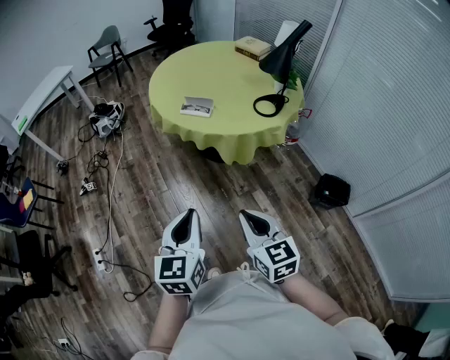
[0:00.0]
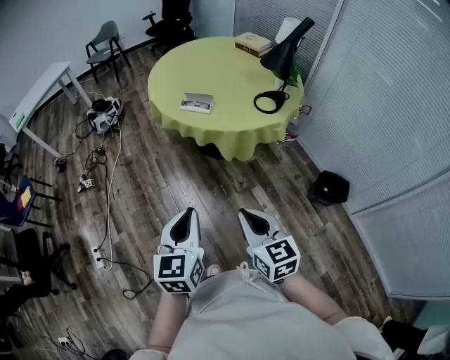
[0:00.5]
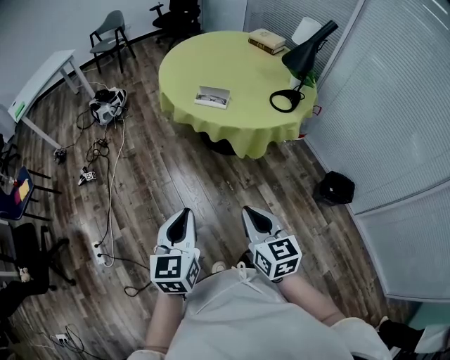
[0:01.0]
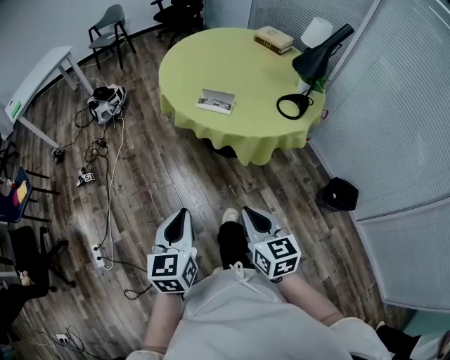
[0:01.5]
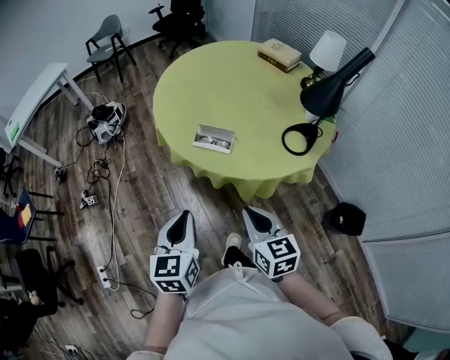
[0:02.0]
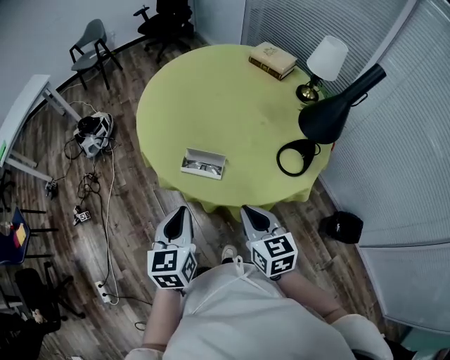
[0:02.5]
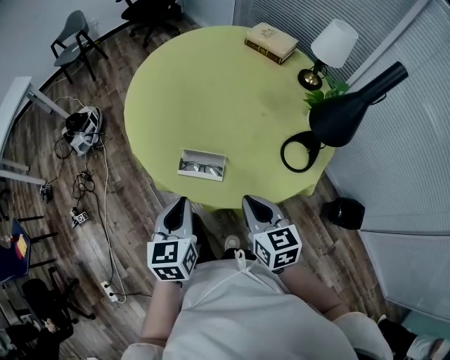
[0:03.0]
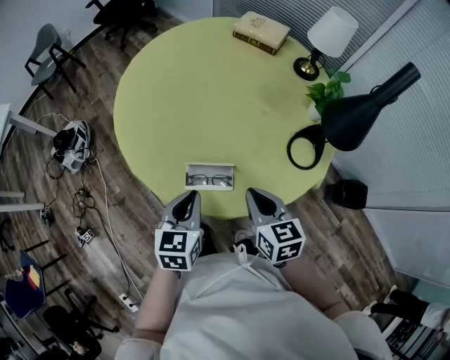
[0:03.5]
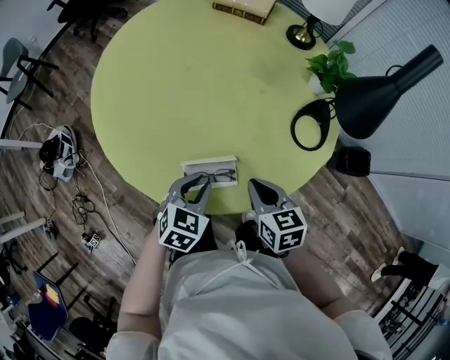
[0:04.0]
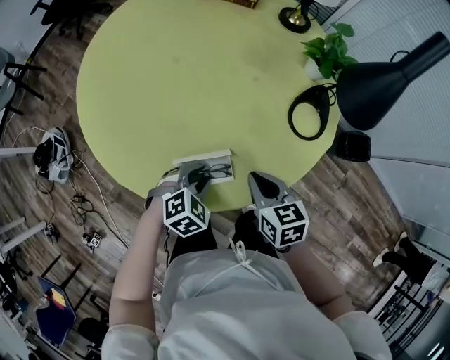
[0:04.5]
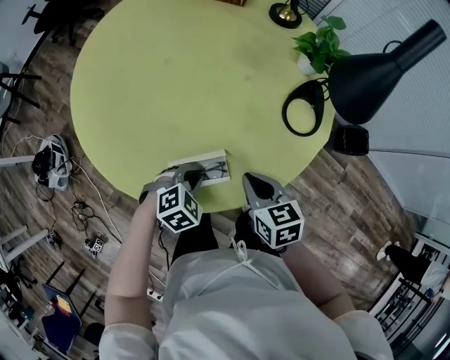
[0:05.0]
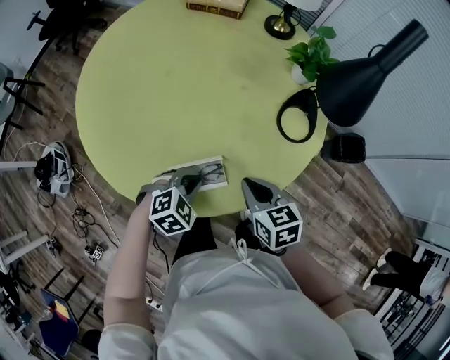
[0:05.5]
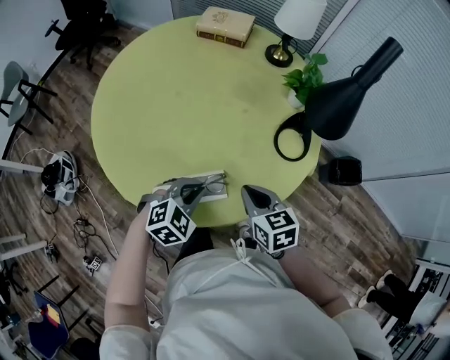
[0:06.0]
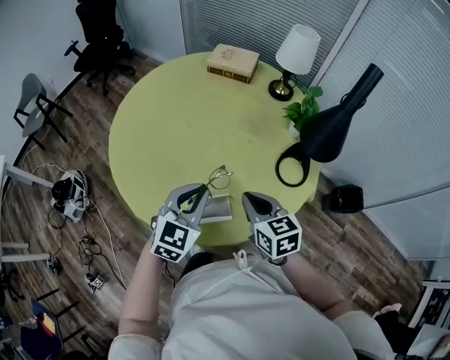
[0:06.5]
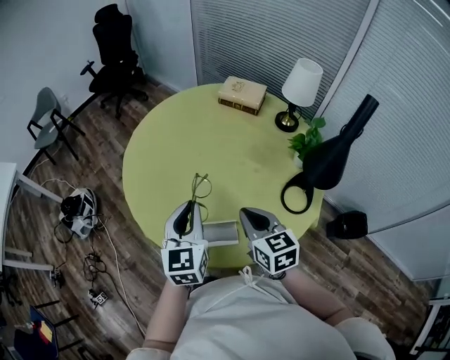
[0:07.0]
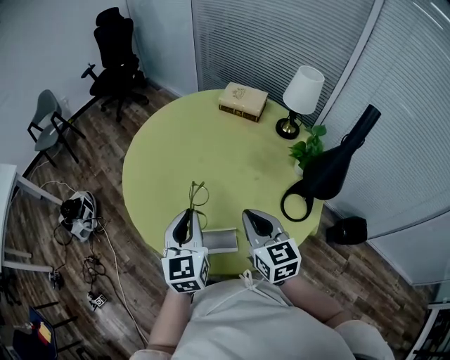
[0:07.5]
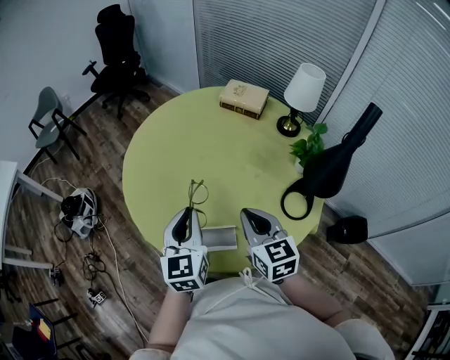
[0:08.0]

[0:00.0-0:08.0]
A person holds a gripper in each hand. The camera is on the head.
0:00.0 to 0:02.0: Both grippers move forward, some 30 cm.
0:02.0 to 0:04.0: The left gripper changes place by about 40 cm, and swivels some 60 degrees. The right gripper moves roughly 35 cm, and changes its angle by roughly 30 degrees.
0:04.0 to 0:06.0: The left gripper travels downward and back again, approximately 10 cm each way, and turns by roughly 30 degrees.
0:06.0 to 0:08.0: The grippers both shift upward by roughly 15 cm. The left gripper points its fingers approximately 40 degrees further upward. Meanwhile the right gripper changes its angle by approximately 20 degrees.

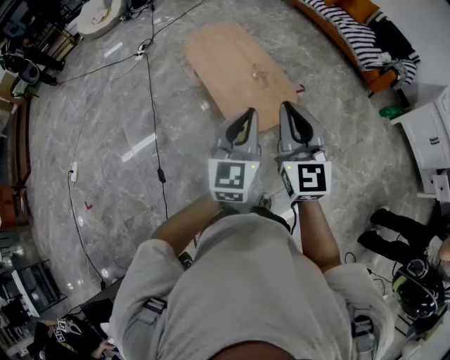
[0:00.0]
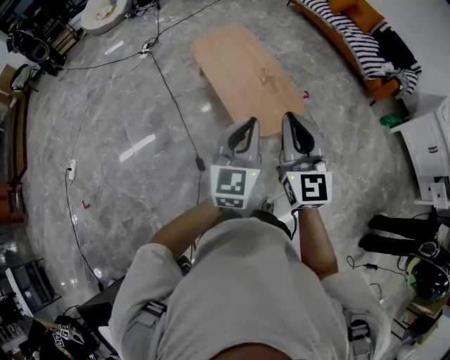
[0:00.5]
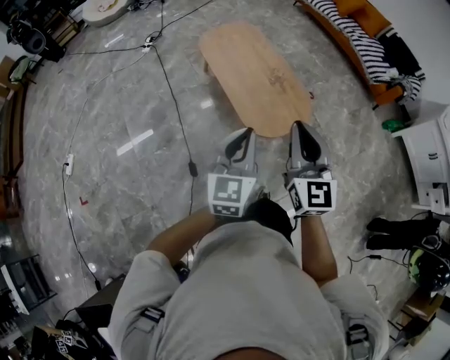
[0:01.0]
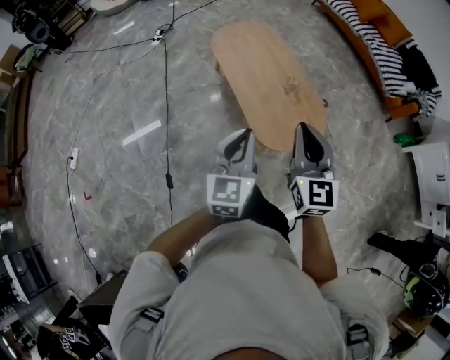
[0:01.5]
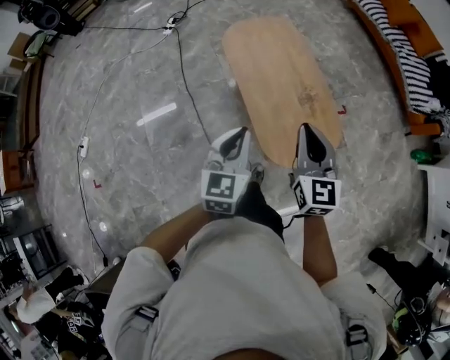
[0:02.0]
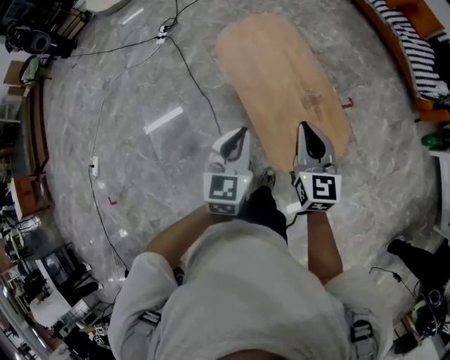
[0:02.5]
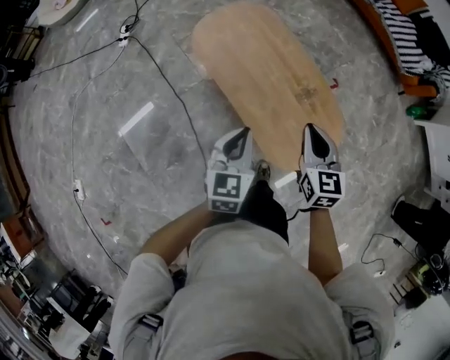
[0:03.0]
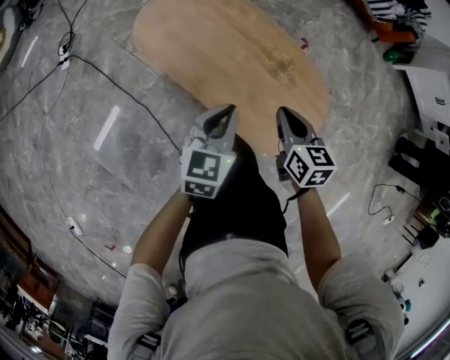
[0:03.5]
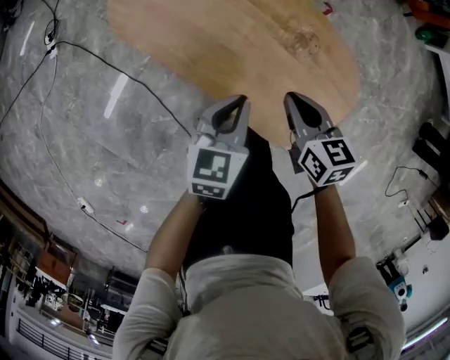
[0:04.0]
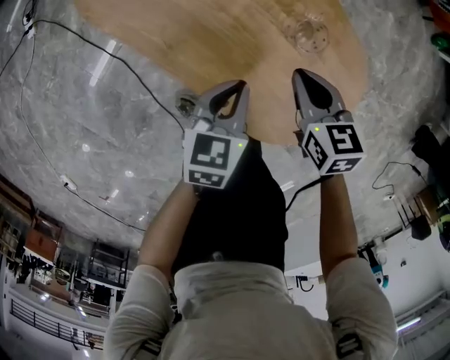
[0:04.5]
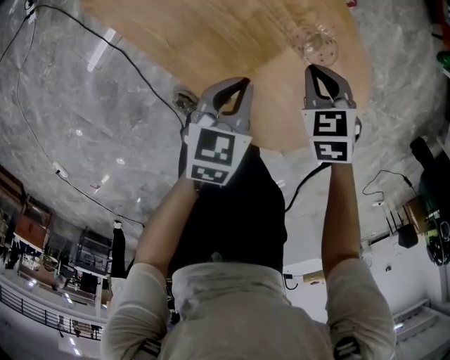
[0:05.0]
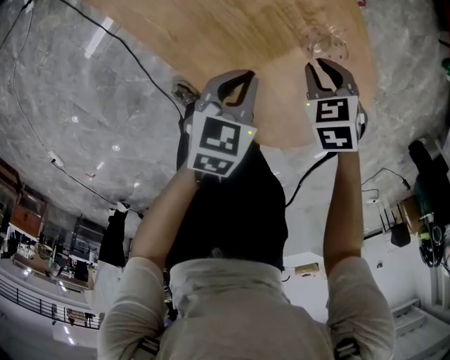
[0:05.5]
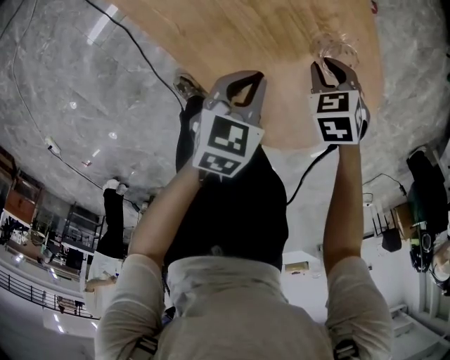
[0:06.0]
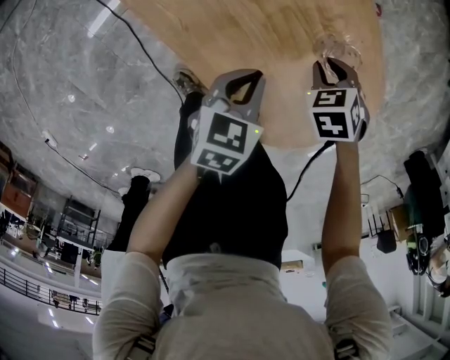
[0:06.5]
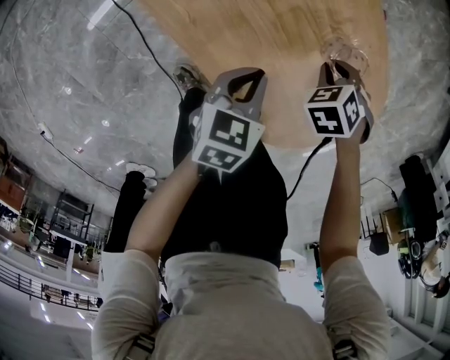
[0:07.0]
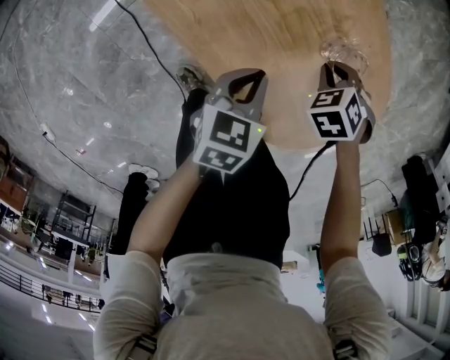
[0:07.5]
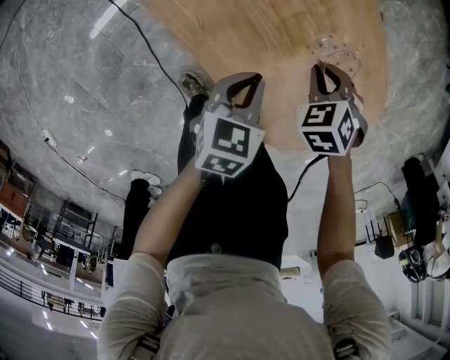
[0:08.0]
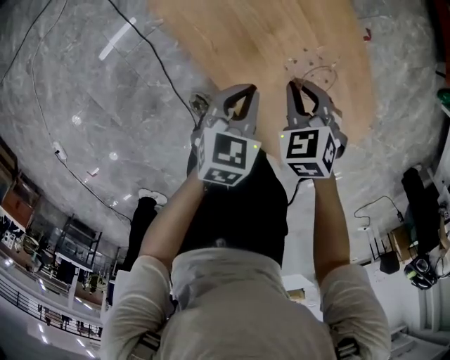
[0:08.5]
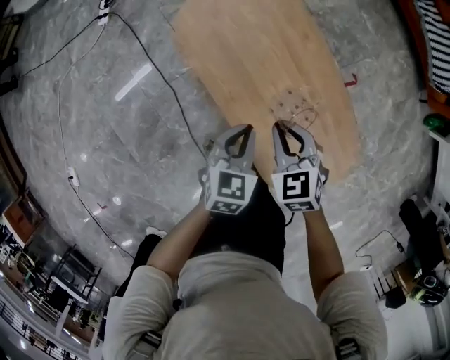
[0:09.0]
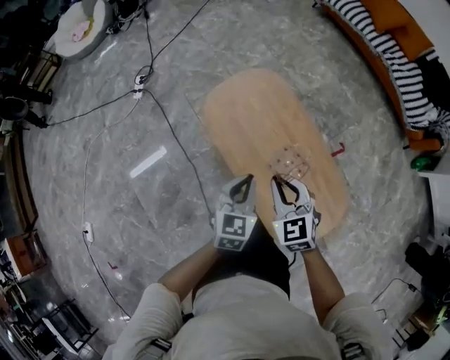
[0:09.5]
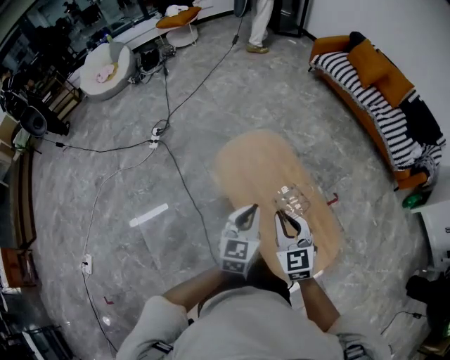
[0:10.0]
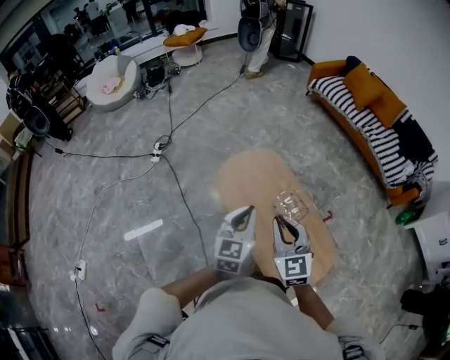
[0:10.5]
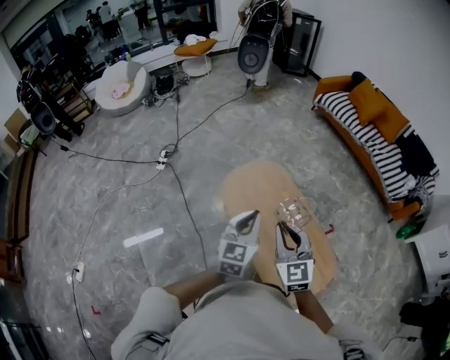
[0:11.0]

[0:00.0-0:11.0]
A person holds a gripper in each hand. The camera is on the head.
0:00.0 to 0:02.0: The right gripper moves forward, downward and to the left, about 30 cm. The left gripper shifts approximately 30 cm forward, to the left and downward, and rotates about 20 degrees.
0:02.0 to 0:03.5: The right gripper goes roughly 25 cm downward, and rotates approximately 40 degrees. Meanwhile the left gripper moves some 30 cm, and swivels roughly 40 degrees.
0:03.5 to 0:05.5: Both grippers travel together downward, some 25 cm. The right gripper tips its fingers downward by approximately 40 degrees. The left gripper turns by some 30 degrees.
0:07.5 to 0:09.0: Both grippers travel together upward, approximately 25 cm. The right gripper tilts its fingers roughly 40 degrees upward; the left gripper turns by approximately 20 degrees.
0:09.0 to 0:11.0: Both grippers move upward, approximately 30 cm. The left gripper tips its fingers upward by about 30 degrees; the right gripper points its fingers some 40 degrees further upward.

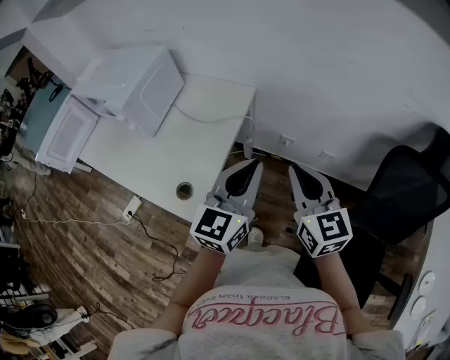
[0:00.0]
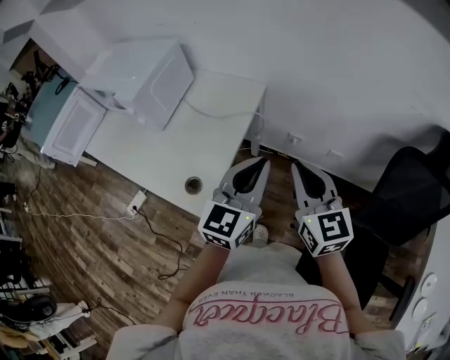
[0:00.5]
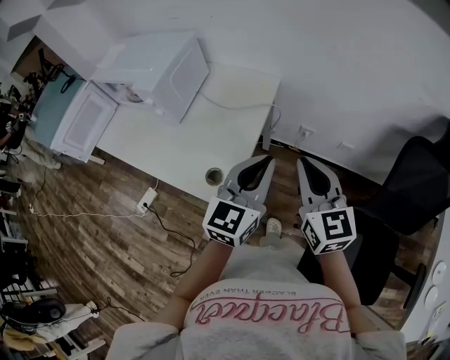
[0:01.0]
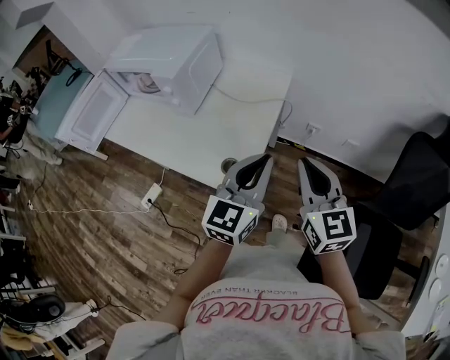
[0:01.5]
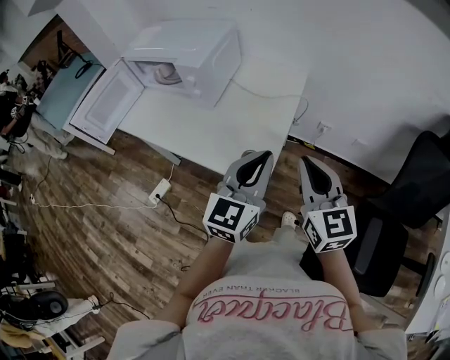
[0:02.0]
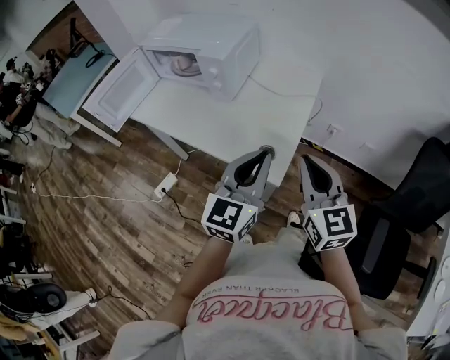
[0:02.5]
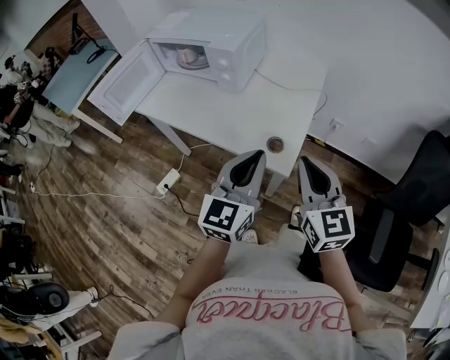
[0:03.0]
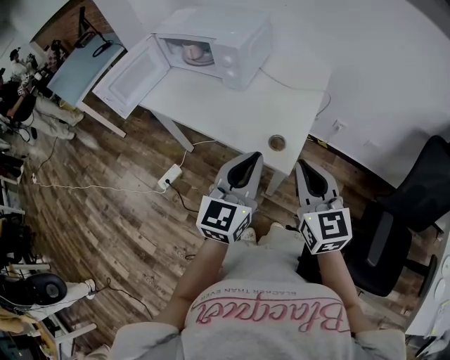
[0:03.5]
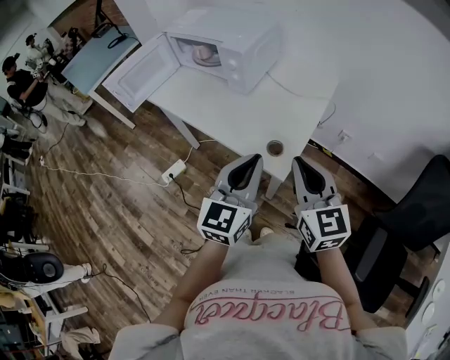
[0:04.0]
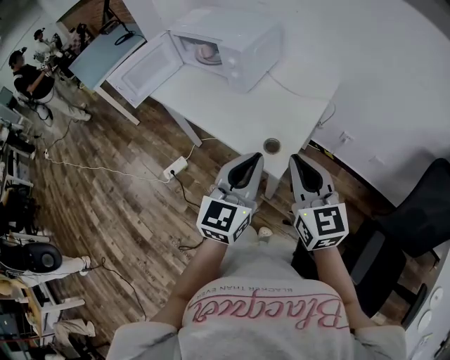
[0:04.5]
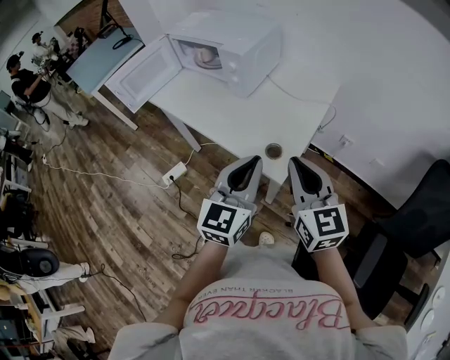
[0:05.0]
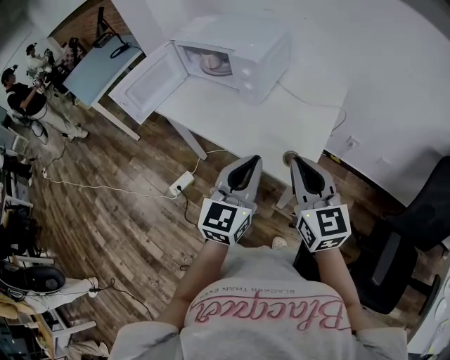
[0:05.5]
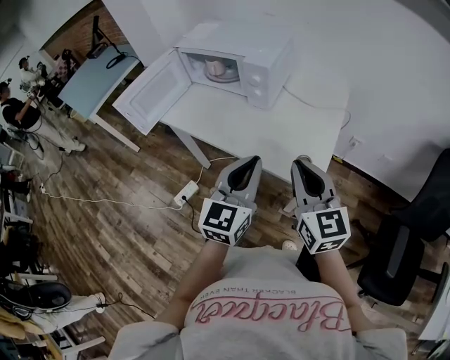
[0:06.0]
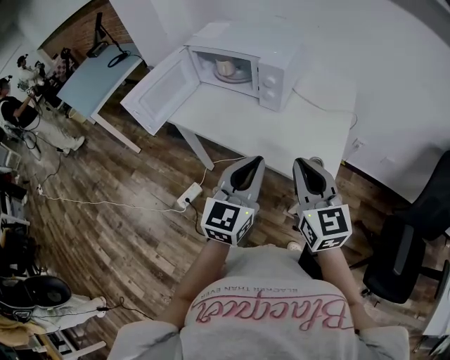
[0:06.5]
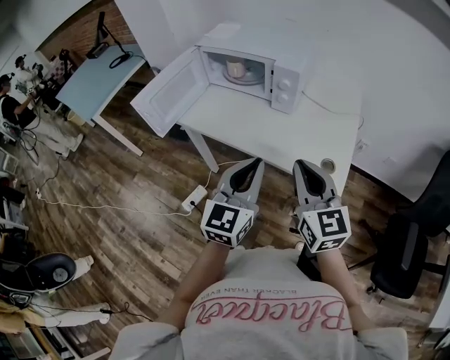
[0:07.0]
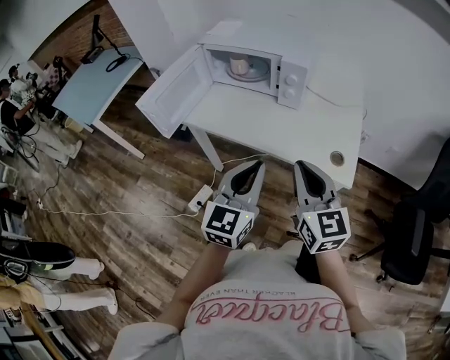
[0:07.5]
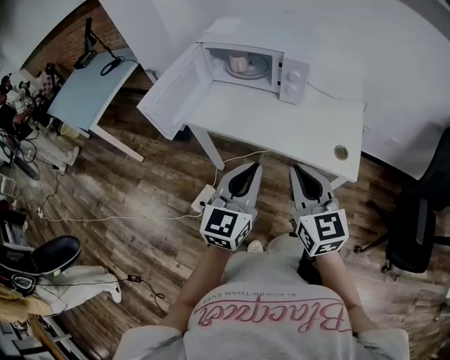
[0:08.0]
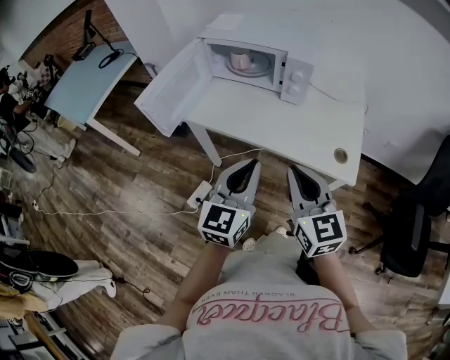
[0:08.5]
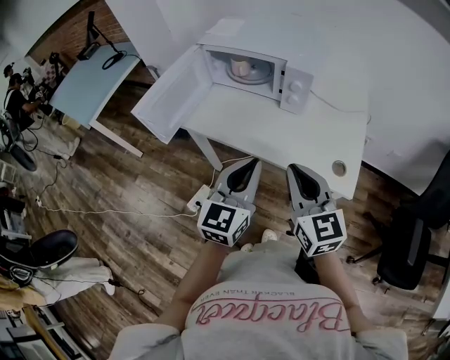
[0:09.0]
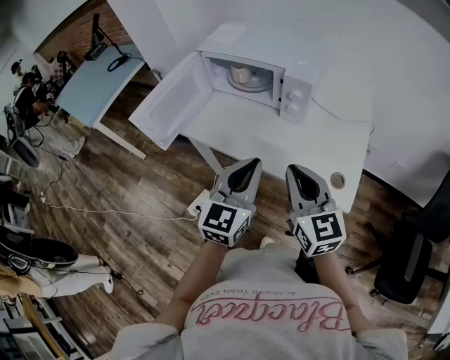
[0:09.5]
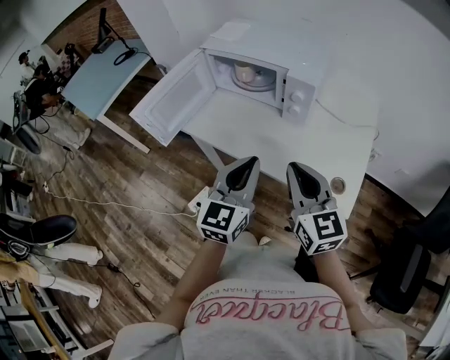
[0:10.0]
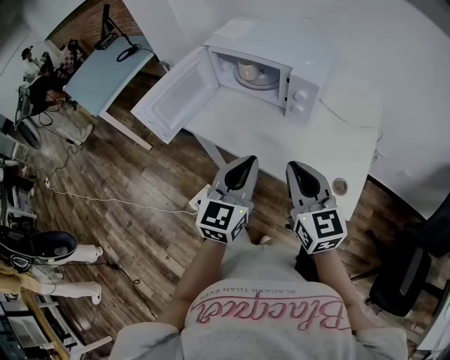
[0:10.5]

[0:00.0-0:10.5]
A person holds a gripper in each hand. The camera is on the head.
0:00.0 to 0:02.0: Both grippers move to the left and backward, about 20 cm.
0:02.0 to 0:04.0: The left gripper travels to the left and backward by about 10 cm. Meanwhile the right gripper heads to the left, covering some 10 cm.
0:04.0 to 0:06.5: Both grippers move to the left, approximately 15 cm.
0:06.5 to 0:08.5: Both grippers travel together to the left, approximately 15 cm.
0:08.5 to 0:10.5: Both grippers move forward, some 10 cm.
